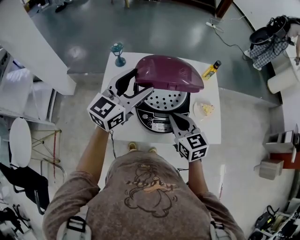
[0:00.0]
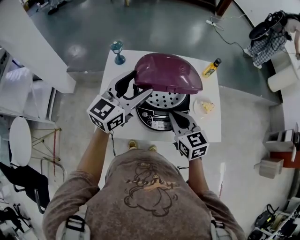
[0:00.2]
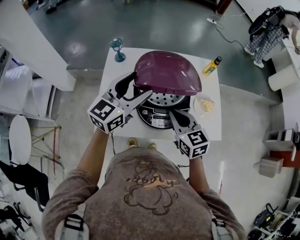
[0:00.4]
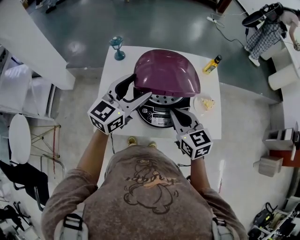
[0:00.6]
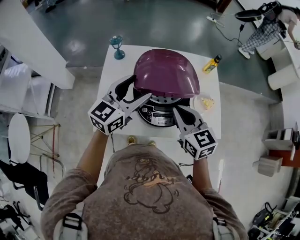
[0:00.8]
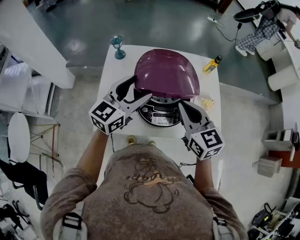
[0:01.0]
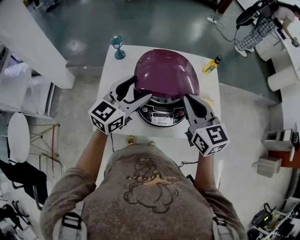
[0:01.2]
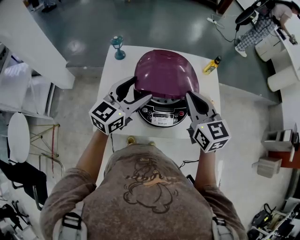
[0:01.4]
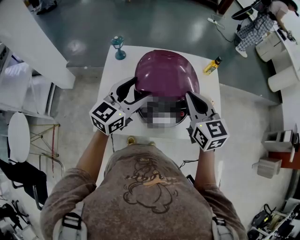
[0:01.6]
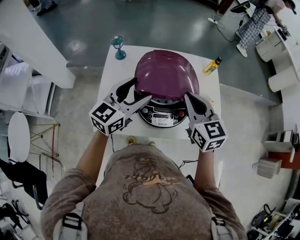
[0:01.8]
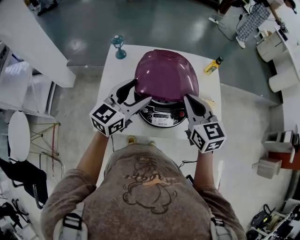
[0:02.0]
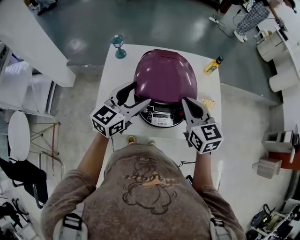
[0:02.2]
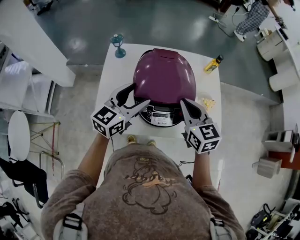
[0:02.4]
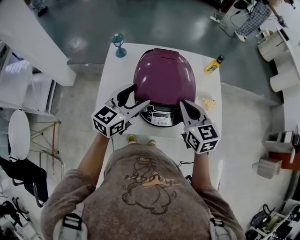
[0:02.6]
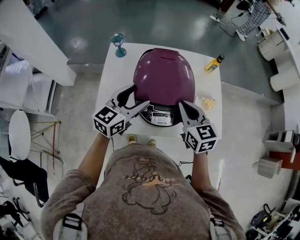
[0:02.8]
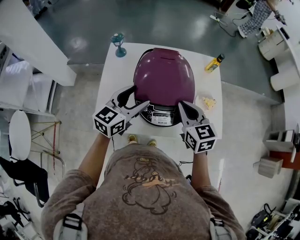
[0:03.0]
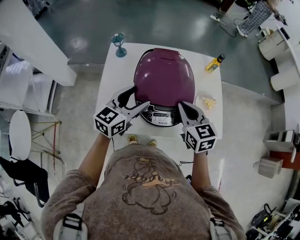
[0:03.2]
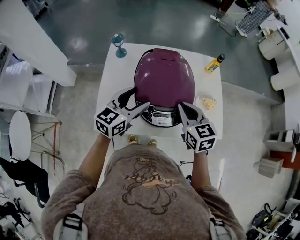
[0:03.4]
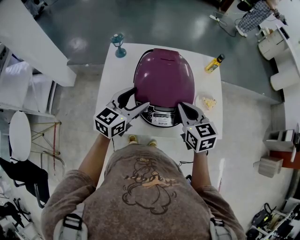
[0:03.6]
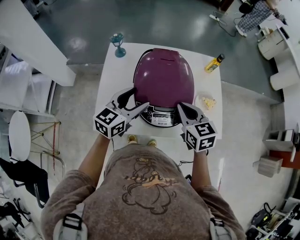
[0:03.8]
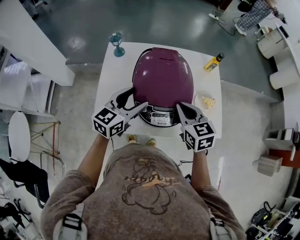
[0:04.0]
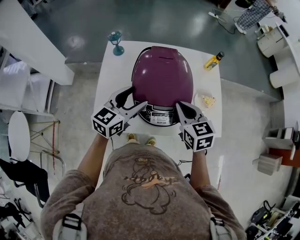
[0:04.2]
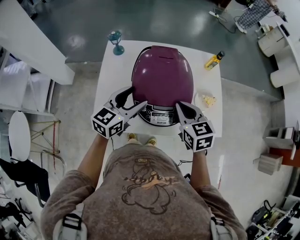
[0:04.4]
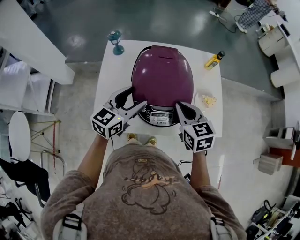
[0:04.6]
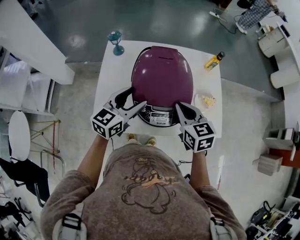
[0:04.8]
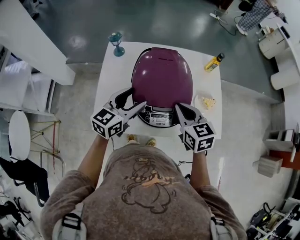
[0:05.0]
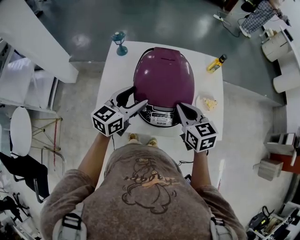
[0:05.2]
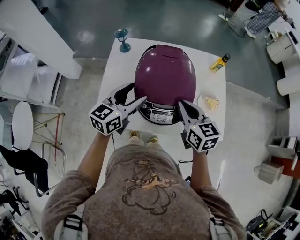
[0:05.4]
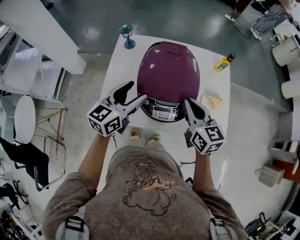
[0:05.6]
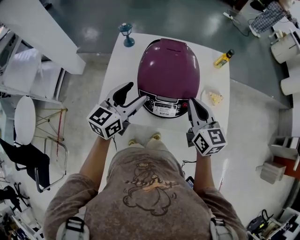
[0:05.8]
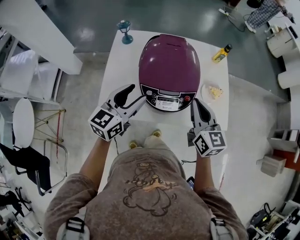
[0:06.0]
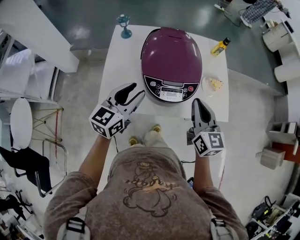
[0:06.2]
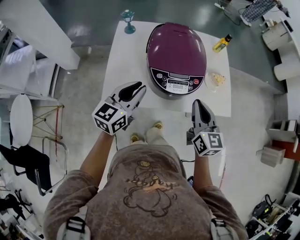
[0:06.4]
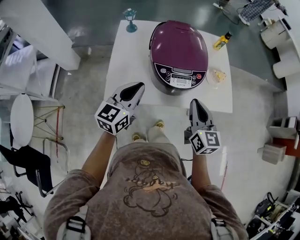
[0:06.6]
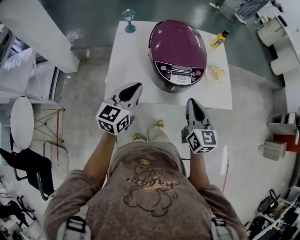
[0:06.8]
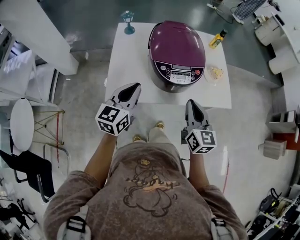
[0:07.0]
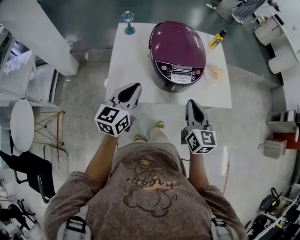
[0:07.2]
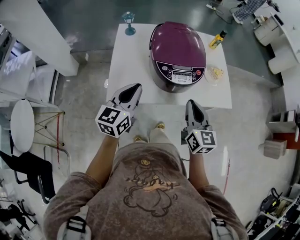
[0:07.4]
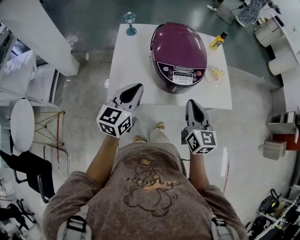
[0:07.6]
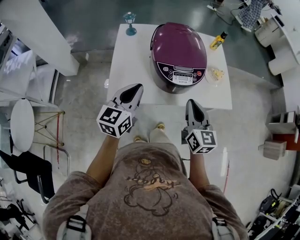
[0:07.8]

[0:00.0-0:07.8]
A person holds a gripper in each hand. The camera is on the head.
0:00.0 to 0:01.6: The left gripper heads downward, covering approximately 5 cm. The right gripper heads upward, covering roughly 10 cm.
0:01.6 to 0:03.2: The two grippers go about 5 cm downward.
0:03.2 to 0:04.6: The grippers stay close to where they were, moving slightly.
0:04.6 to 0:06.2: Both grippers move backward, roughly 10 cm. The right gripper rotates about 20 degrees. The left gripper closes.
0:06.2 to 0:07.8: The grippers both shift backward by about 10 cm. The left gripper closes its fingers.

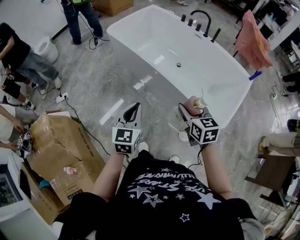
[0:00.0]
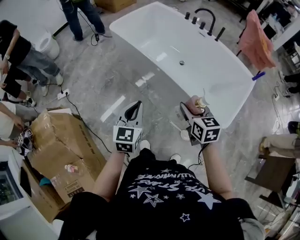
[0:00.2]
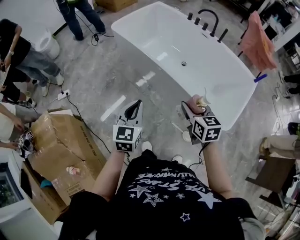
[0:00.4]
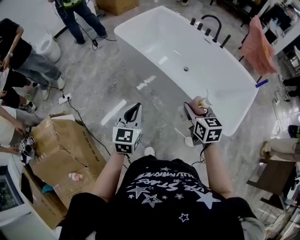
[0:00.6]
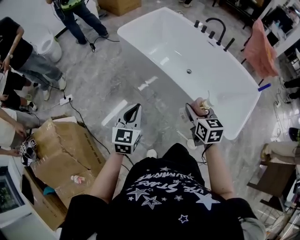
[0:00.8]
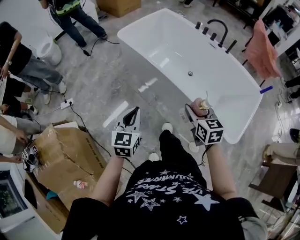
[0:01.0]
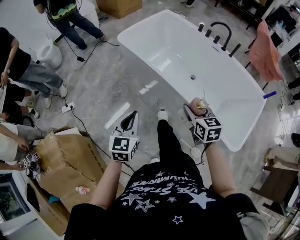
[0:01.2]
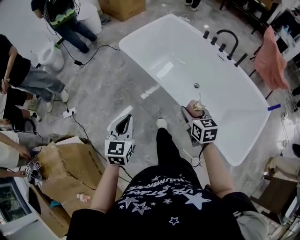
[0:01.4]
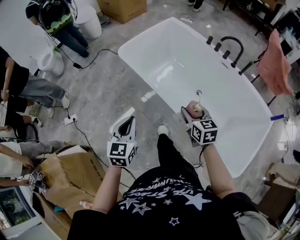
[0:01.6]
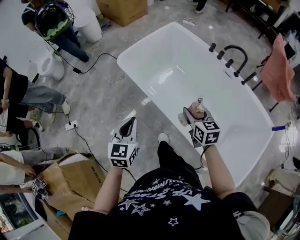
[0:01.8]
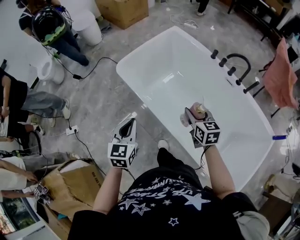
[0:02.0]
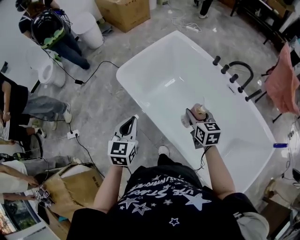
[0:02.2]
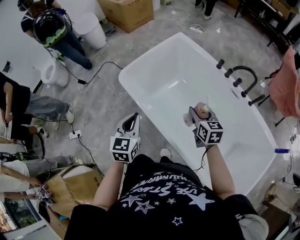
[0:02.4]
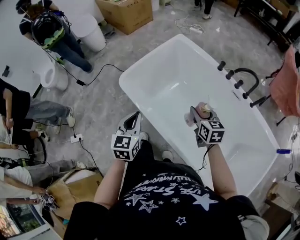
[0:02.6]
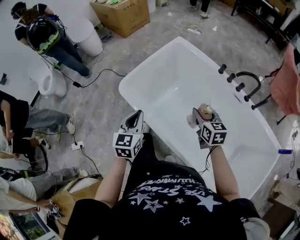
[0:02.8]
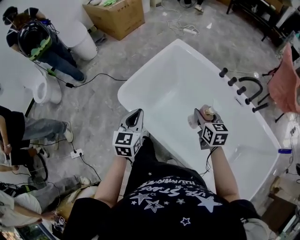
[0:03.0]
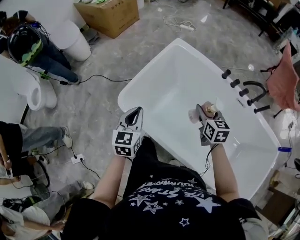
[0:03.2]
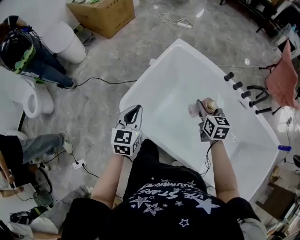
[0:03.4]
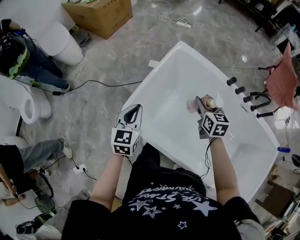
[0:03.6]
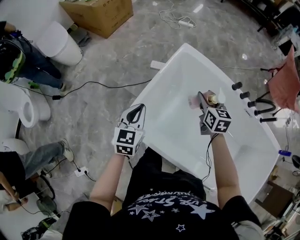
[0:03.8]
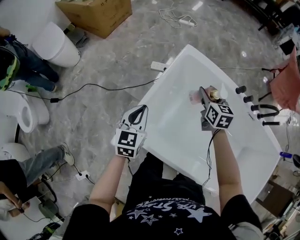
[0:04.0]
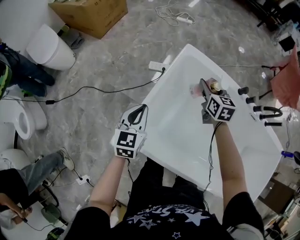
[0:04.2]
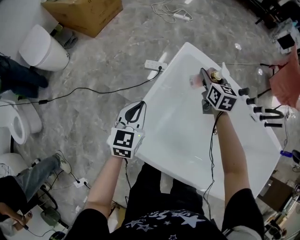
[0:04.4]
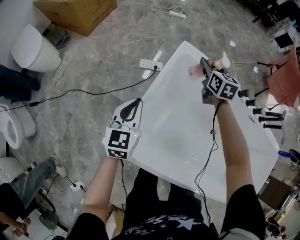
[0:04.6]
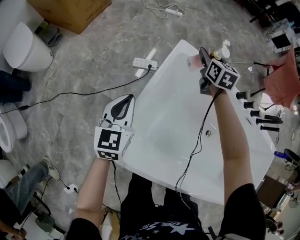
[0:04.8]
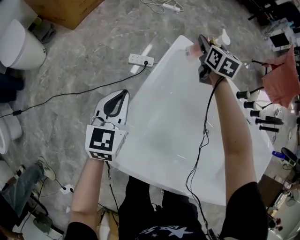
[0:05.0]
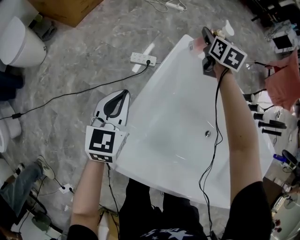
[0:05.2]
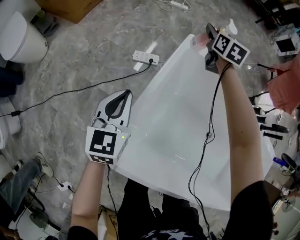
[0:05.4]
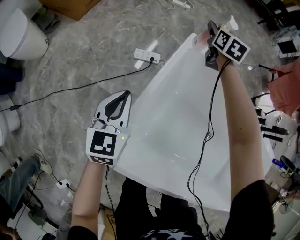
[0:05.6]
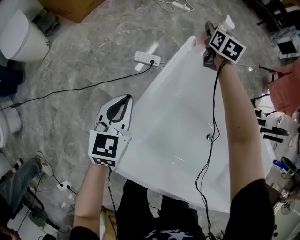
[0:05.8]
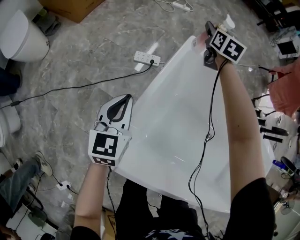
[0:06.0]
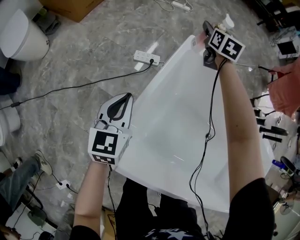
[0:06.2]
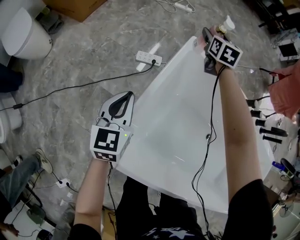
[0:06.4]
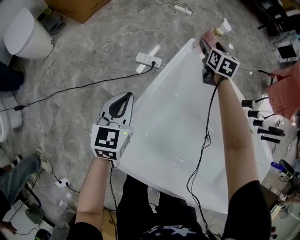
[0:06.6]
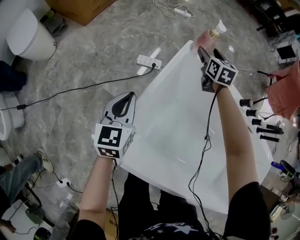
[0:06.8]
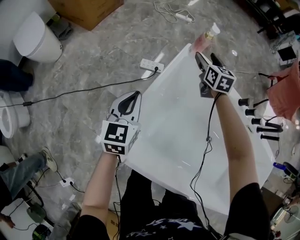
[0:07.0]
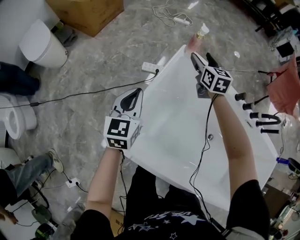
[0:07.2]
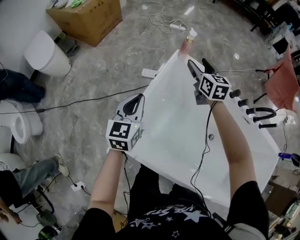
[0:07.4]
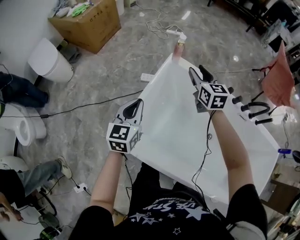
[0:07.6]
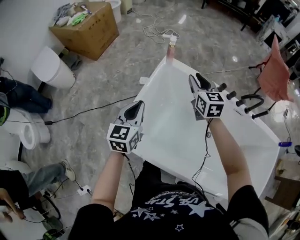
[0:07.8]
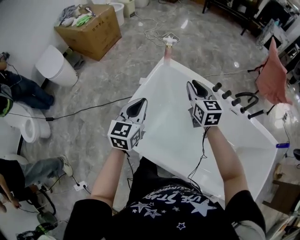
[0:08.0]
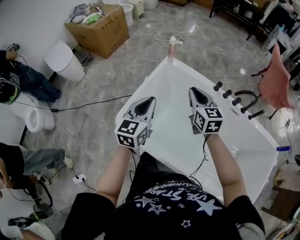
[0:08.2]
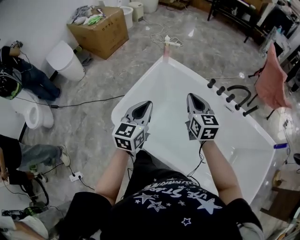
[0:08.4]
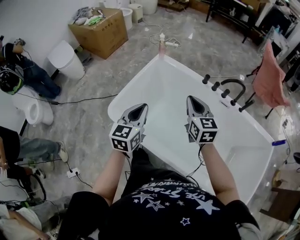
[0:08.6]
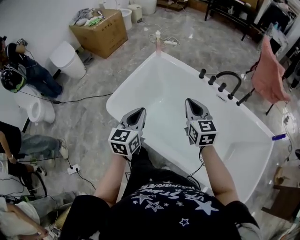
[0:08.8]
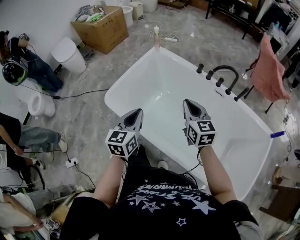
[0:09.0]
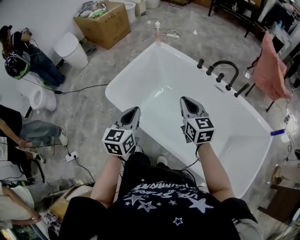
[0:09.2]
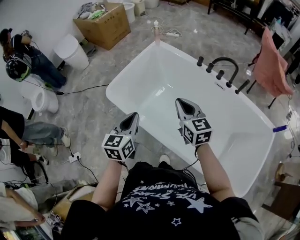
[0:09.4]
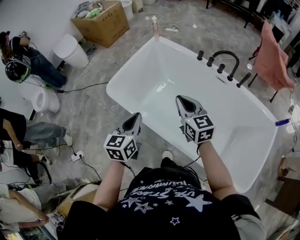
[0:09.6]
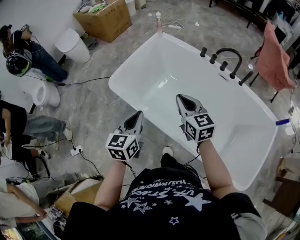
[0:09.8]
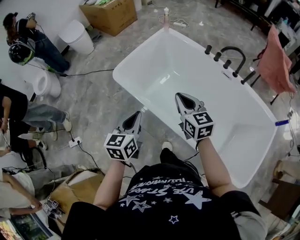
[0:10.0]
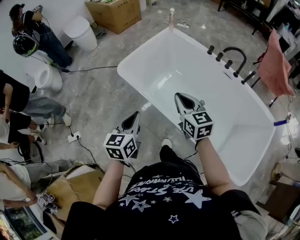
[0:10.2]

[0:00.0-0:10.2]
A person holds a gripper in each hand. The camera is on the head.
0:00.0 to 0:01.4: Both grippers travel together forward and to the left, about 30 cm.
0:01.4 to 0:03.0: The two grippers travel together, forward, roughly 50 cm.
0:03.0 to 0:04.4: Both grippers are carried forward and to the left, approximately 40 cm.
0:04.4 to 0:05.8: The left gripper travels downward and forward by approximately 10 cm; the right gripper heads forward, covering approximately 25 cm.
0:05.8 to 0:07.2: The left gripper heads upward, covering roughly 10 cm, while the right gripper travels backward and upward by some 20 cm.
0:07.2 to 0:08.8: Both grippers are carried backward and to the right, some 50 cm. The left gripper goes roughly 15 cm upward. Meanwhile the right gripper closes its fingers.
0:08.8 to 0:10.2: The right gripper goes approximately 20 cm backward and to the left. Meanwhile the left gripper goes roughly 25 cm backward.

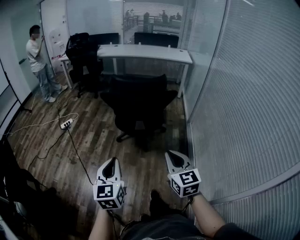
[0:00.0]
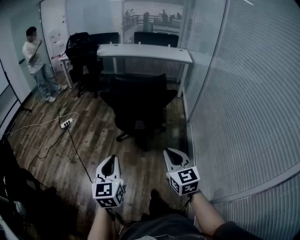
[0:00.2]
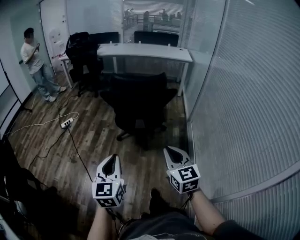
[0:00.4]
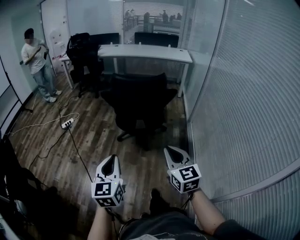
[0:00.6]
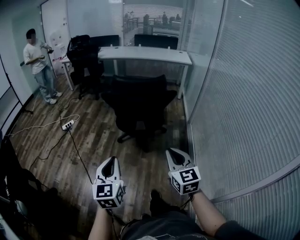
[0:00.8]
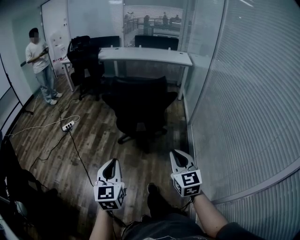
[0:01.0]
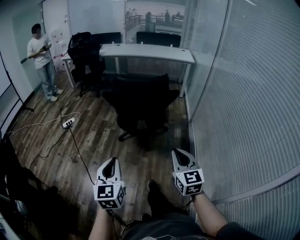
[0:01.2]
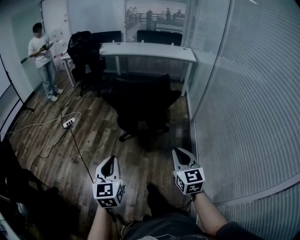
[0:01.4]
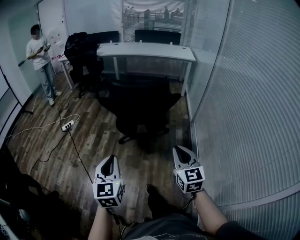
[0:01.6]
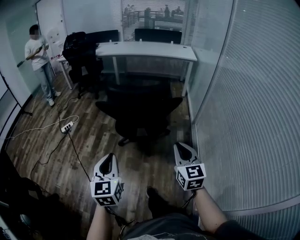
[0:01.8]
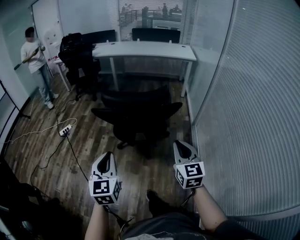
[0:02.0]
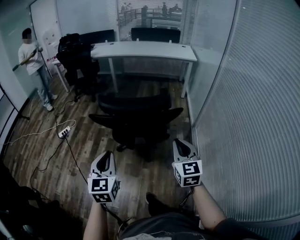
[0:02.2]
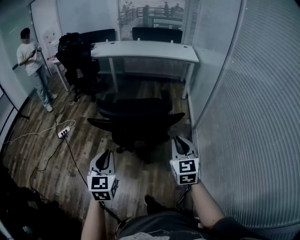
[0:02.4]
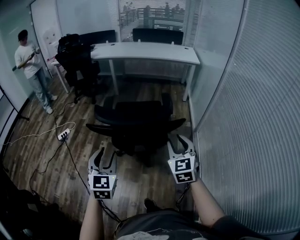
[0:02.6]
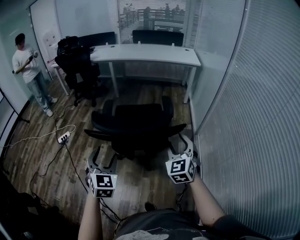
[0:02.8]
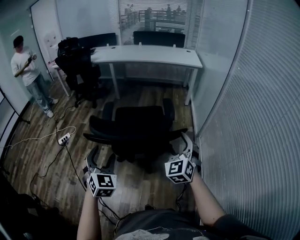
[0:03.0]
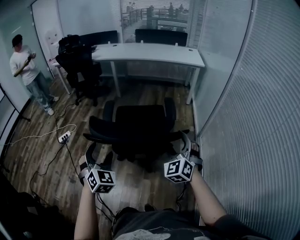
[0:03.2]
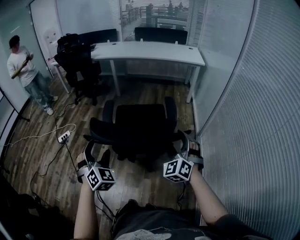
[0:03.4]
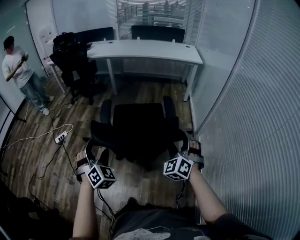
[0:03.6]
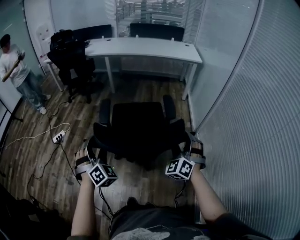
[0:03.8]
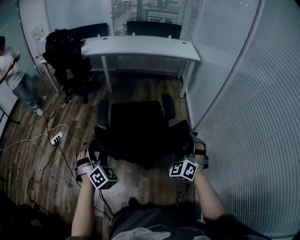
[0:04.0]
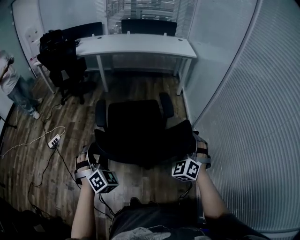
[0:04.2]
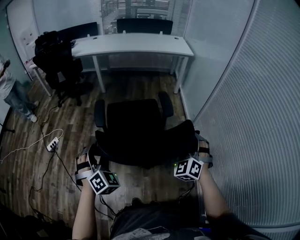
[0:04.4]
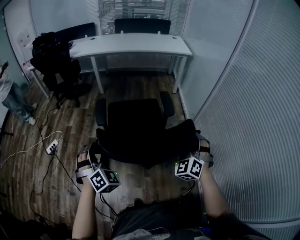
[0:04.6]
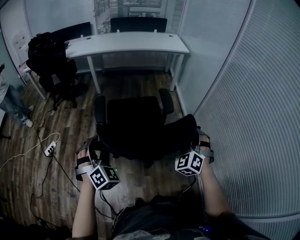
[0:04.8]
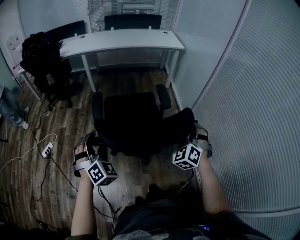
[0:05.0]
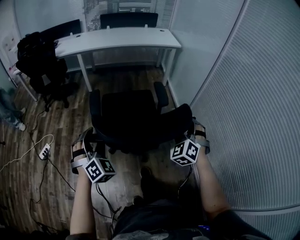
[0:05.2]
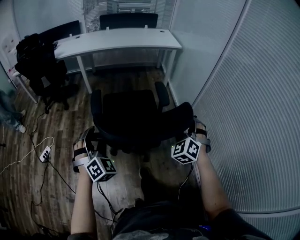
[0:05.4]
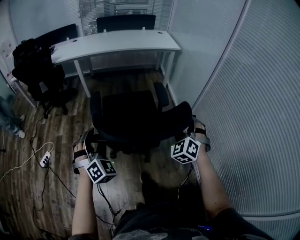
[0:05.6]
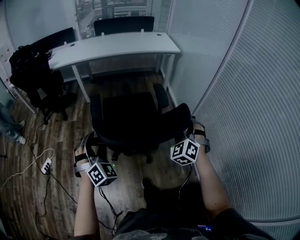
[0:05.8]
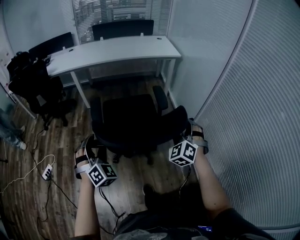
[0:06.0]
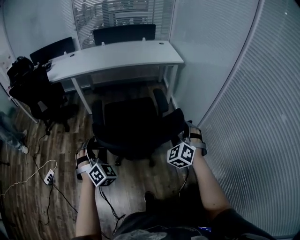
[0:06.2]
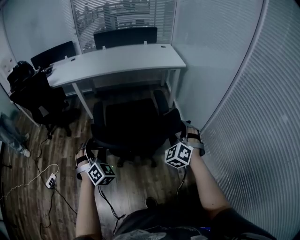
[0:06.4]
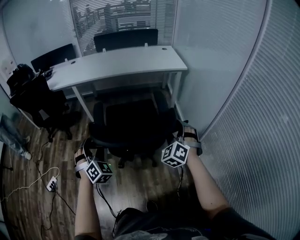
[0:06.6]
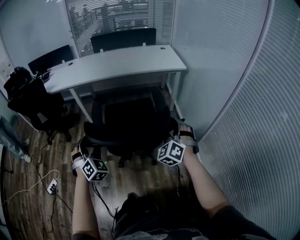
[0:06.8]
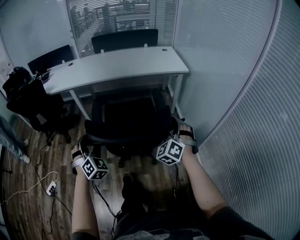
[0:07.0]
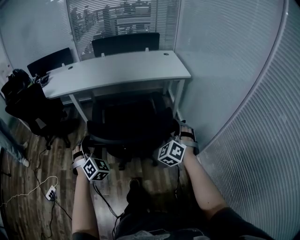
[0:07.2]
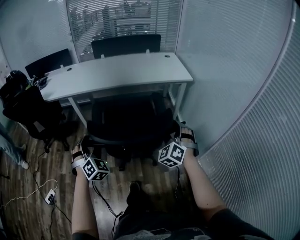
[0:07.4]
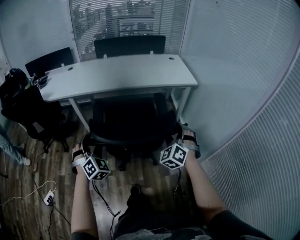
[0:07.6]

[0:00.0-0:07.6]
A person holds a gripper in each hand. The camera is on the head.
0:00.0 to 0:01.6: The two grippers go some 10 cm forward.
0:01.6 to 0:03.0: Both grippers move forward, roughly 30 cm. The right gripper turns by some 30 degrees, and opens up, while the left gripper swivels about 30 degrees, and opens.
0:03.0 to 0:04.6: The right gripper moves forward, roughly 5 cm, and rotates approximately 20 degrees; the left gripper moves forward and to the left, some 15 cm, and rotates approximately 30 degrees.
0:04.6 to 0:06.0: Both grippers move forward, about 25 cm.
0:06.0 to 0:07.6: Both grippers travel together forward, about 35 cm.
